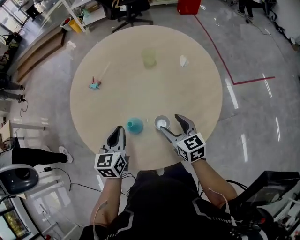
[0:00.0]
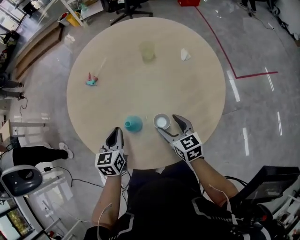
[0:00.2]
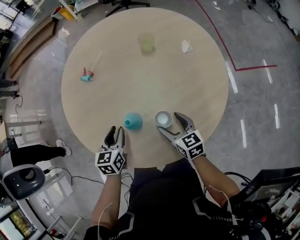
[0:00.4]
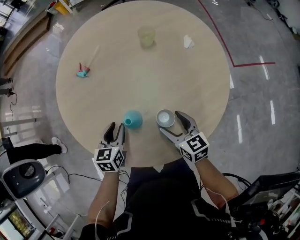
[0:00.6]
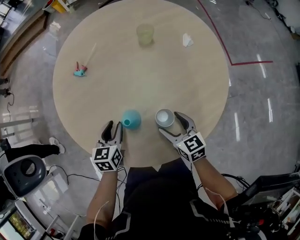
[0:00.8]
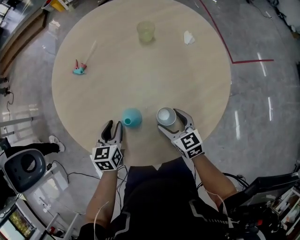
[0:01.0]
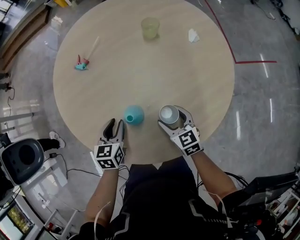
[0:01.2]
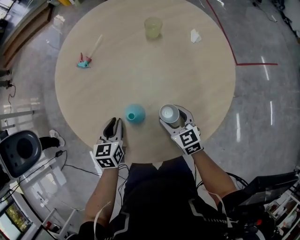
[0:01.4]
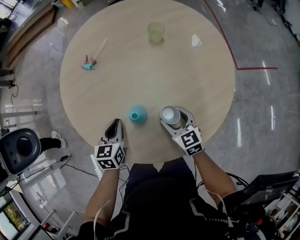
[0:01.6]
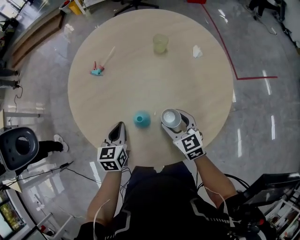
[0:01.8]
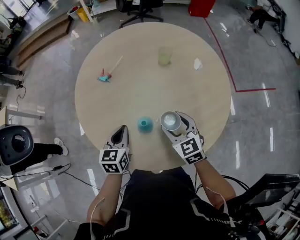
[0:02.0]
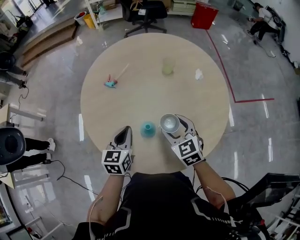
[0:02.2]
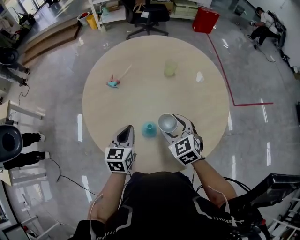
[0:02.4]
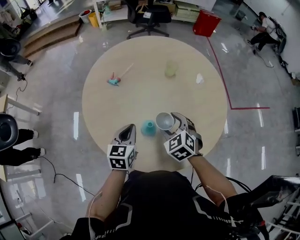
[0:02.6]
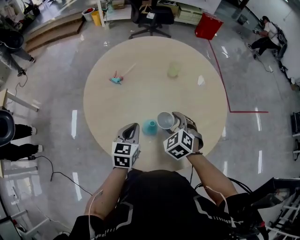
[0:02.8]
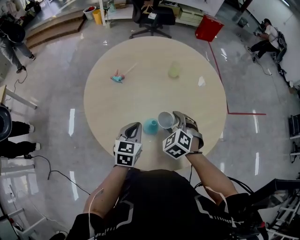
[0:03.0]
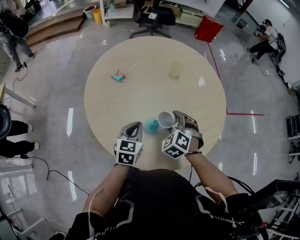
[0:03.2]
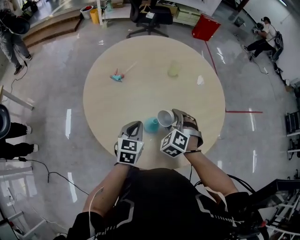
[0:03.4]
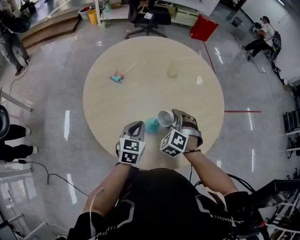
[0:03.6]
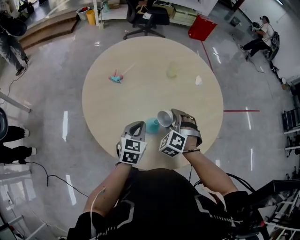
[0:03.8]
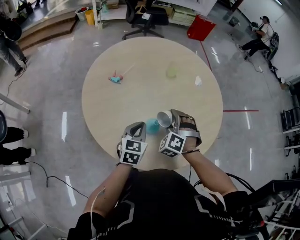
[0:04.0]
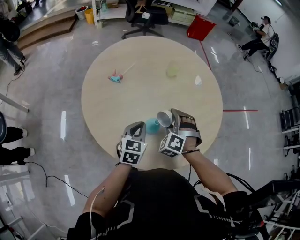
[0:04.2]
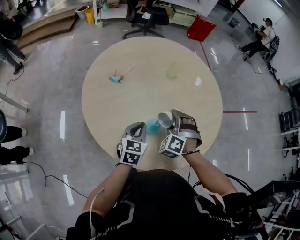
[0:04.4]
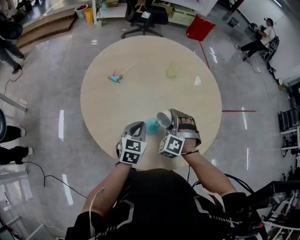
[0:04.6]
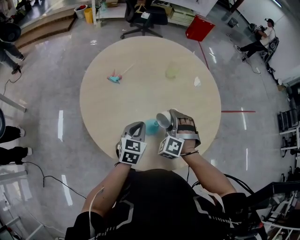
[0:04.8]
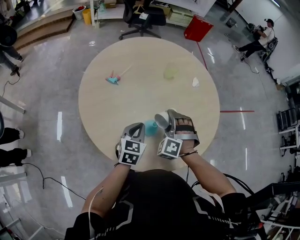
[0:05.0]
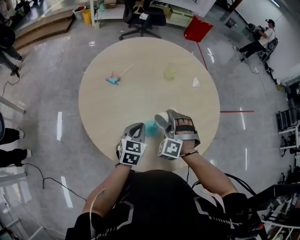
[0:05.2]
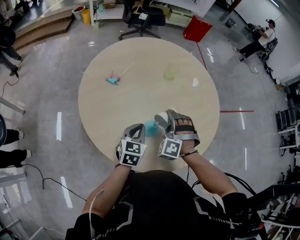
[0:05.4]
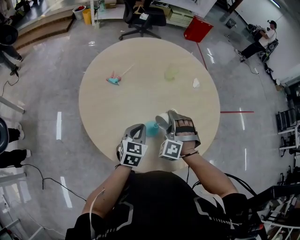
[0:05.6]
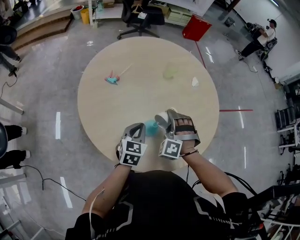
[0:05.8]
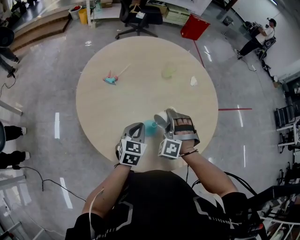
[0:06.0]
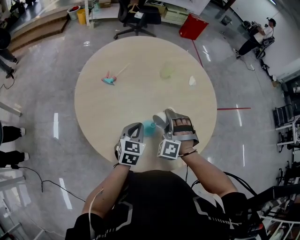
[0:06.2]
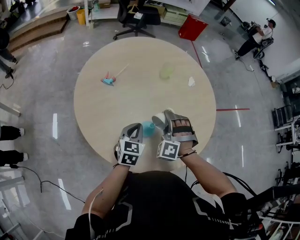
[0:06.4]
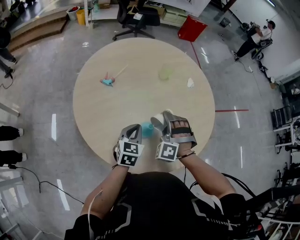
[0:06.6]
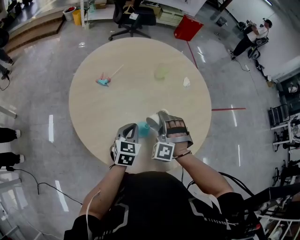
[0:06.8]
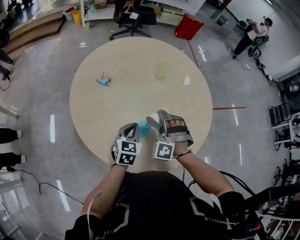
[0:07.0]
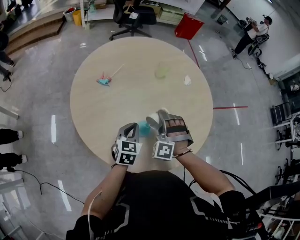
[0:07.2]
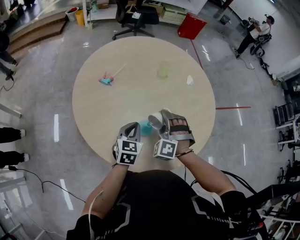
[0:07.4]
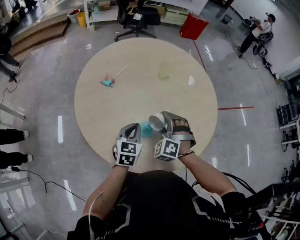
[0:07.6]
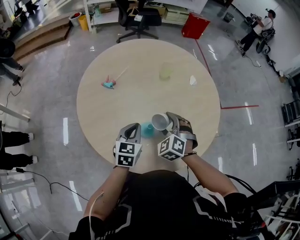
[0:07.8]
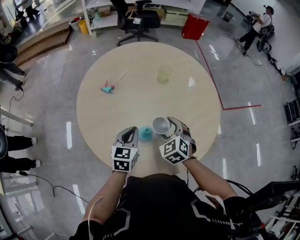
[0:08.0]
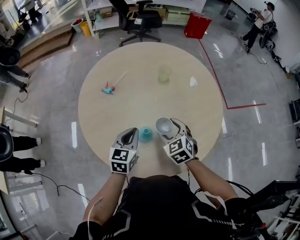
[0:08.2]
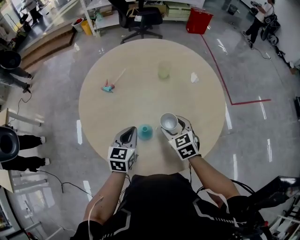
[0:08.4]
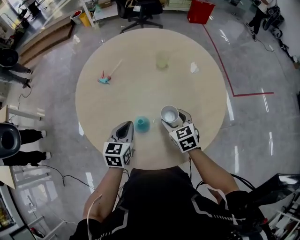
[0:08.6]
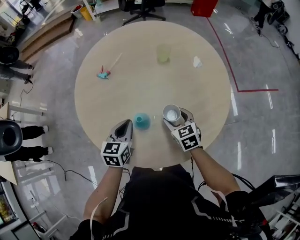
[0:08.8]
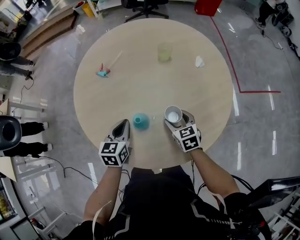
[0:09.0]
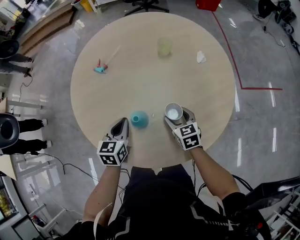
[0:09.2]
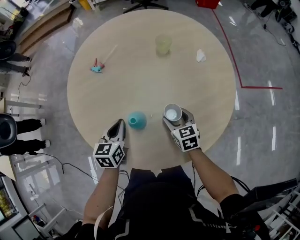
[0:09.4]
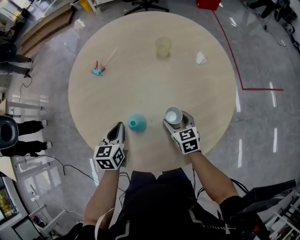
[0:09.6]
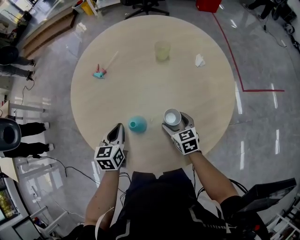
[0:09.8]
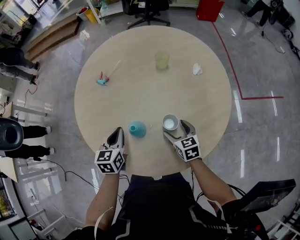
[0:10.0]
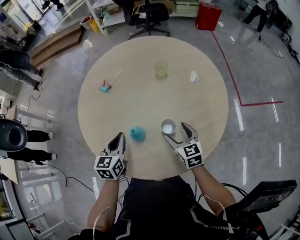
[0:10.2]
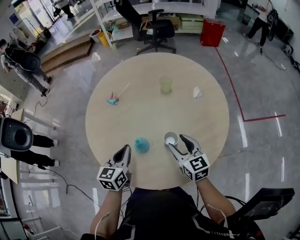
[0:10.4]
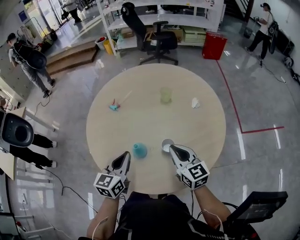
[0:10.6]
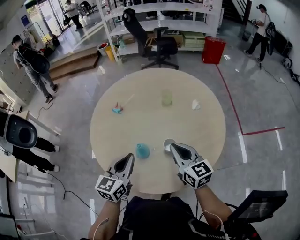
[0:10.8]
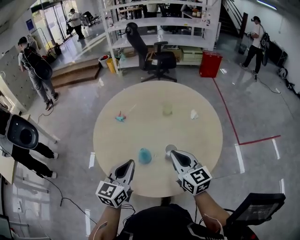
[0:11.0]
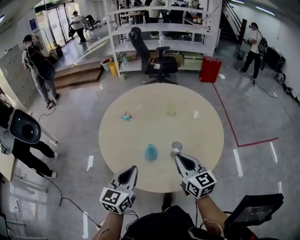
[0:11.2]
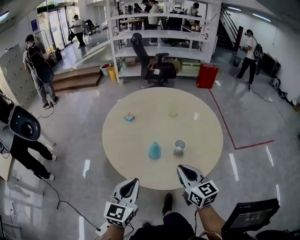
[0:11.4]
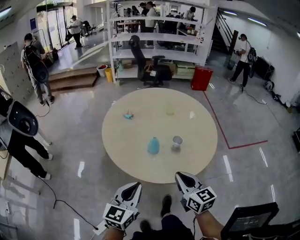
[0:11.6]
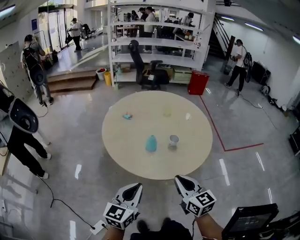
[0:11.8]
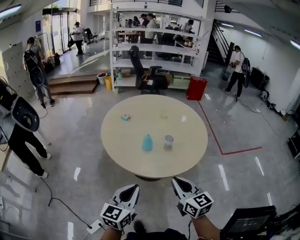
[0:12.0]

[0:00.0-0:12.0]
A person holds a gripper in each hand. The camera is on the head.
0:00.0 to 0:01.6: The grippers both shift downward by about 10 cm. The left gripper opens and closes again.
0:01.6 to 0:03.0: The right gripper goes about 10 cm upward and to the left, and rolls counterclockwise, seen from behind, by about 40 degrees, while the left gripper travels upward by roughly 5 cm.
0:03.0 to 0:04.4: The right gripper turns by approximately 30 degrees.
0:04.4 to 0:07.6: The grippers stay close to where they were, moving slightly.
0:07.6 to 0:09.0: The right gripper heads to the right and downward, covering some 15 cm, and rotates around the line of its fingers by approximately 60 degrees, clockwise from behind.
0:09.0 to 0:10.4: The left gripper moves upward, some 5 cm. Meanwhile the right gripper heads upward, covering approximately 10 cm, and changes its angle by roughly 20 degrees.
0:10.4 to 0:12.0: The right gripper moves backward and upward, approximately 35 cm, and closes; the left gripper shifts roughly 35 cm backward.

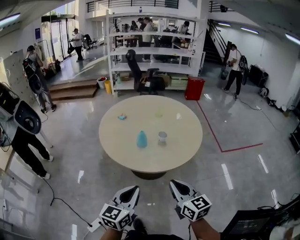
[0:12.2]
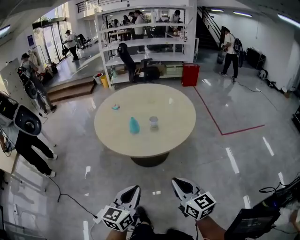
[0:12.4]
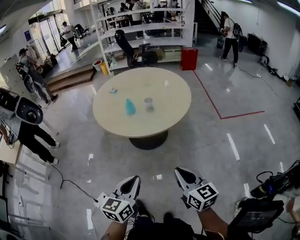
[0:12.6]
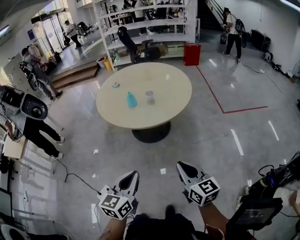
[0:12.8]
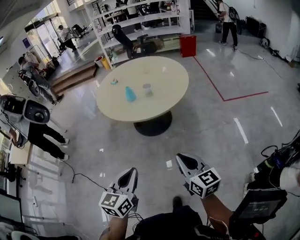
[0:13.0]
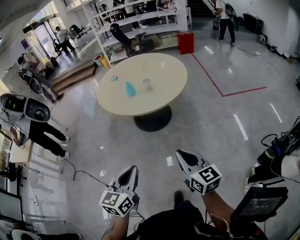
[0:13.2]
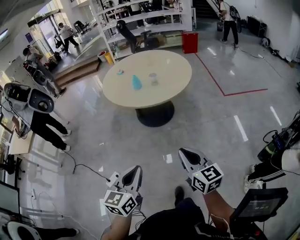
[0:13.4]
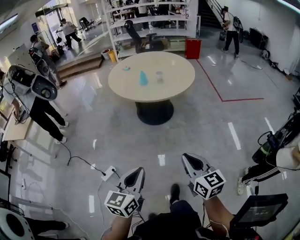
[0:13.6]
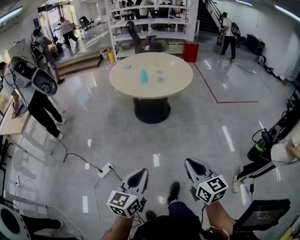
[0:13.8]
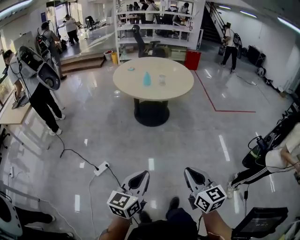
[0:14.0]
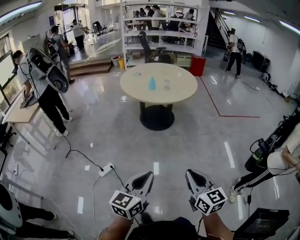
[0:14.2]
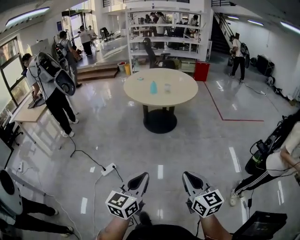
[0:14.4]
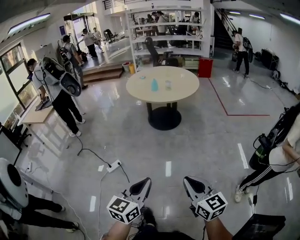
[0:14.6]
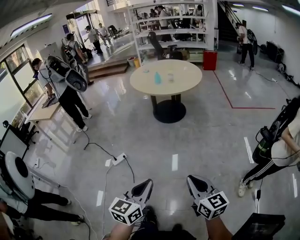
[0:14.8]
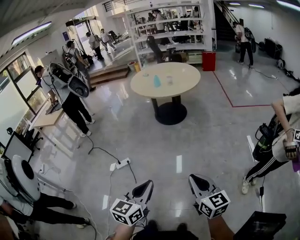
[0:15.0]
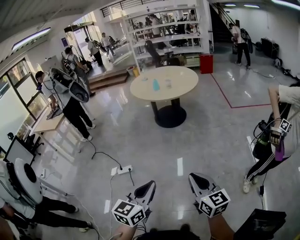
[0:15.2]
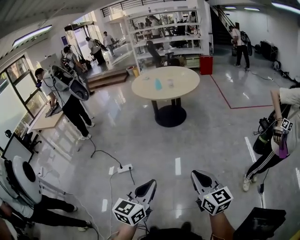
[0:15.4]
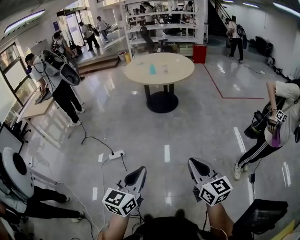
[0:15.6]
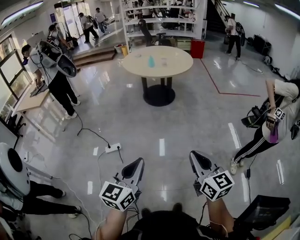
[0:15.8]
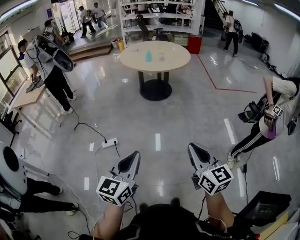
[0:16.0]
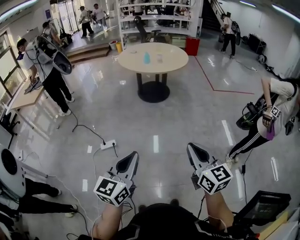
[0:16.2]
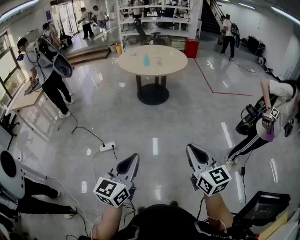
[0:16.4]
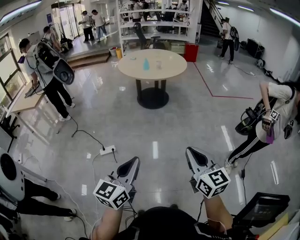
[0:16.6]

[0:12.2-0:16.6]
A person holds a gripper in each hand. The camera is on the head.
0:12.2 to 0:13.6: The two grippers go some 35 cm backward.
0:13.6 to 0:15.2: The two grippers go about 35 cm backward.
0:15.2 to 0:16.6: The left gripper is displaced to the left by roughly 10 cm. The right gripper shifts approximately 10 cm to the left.

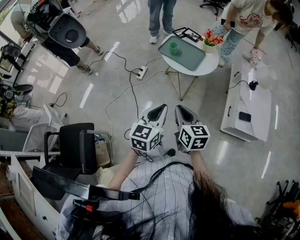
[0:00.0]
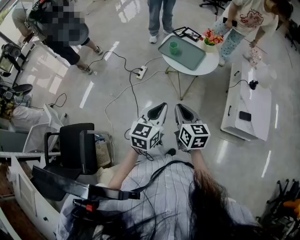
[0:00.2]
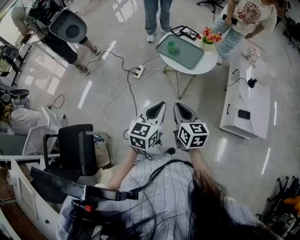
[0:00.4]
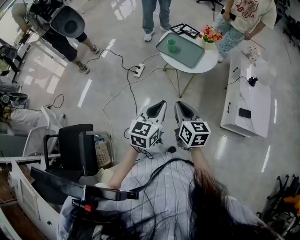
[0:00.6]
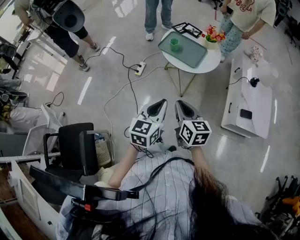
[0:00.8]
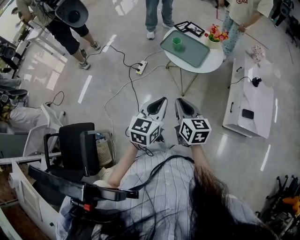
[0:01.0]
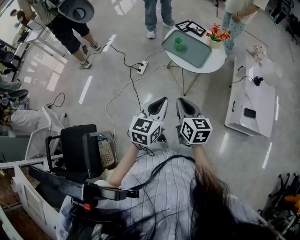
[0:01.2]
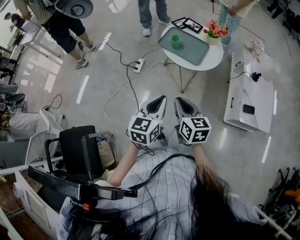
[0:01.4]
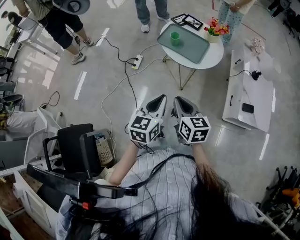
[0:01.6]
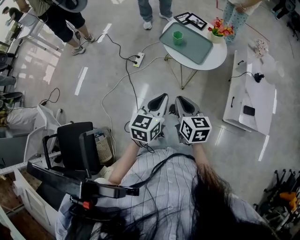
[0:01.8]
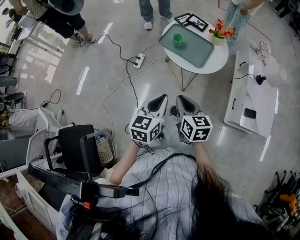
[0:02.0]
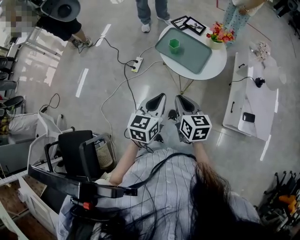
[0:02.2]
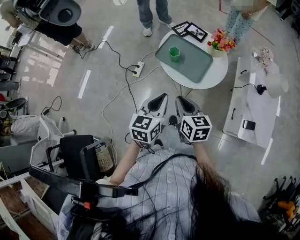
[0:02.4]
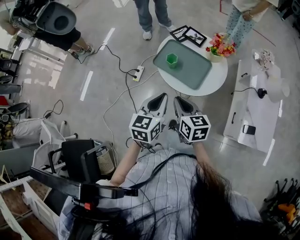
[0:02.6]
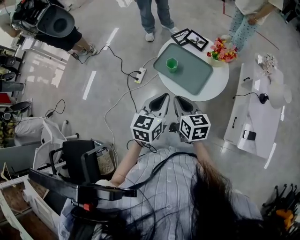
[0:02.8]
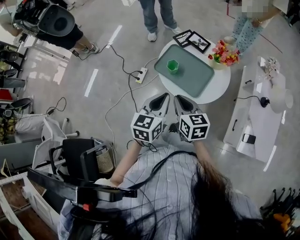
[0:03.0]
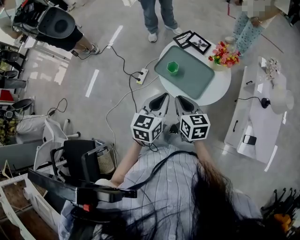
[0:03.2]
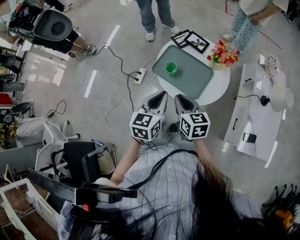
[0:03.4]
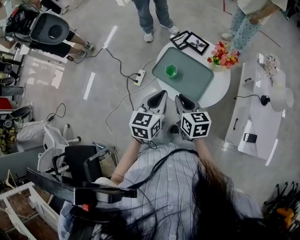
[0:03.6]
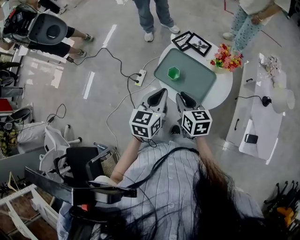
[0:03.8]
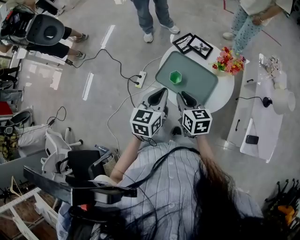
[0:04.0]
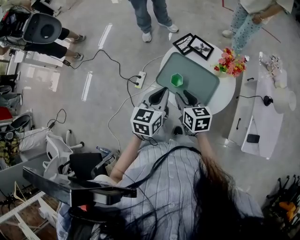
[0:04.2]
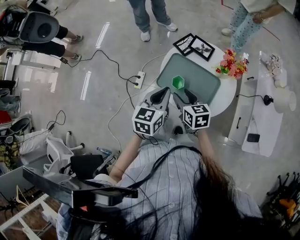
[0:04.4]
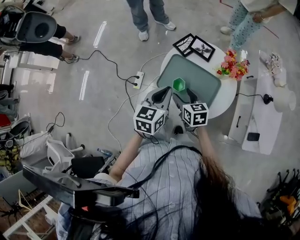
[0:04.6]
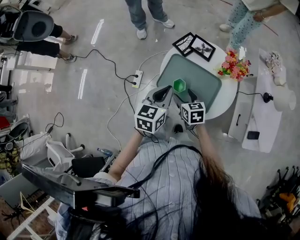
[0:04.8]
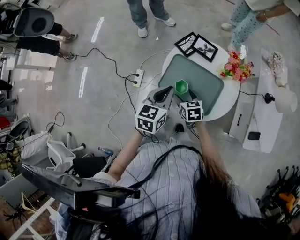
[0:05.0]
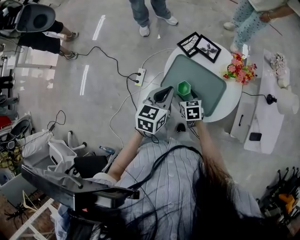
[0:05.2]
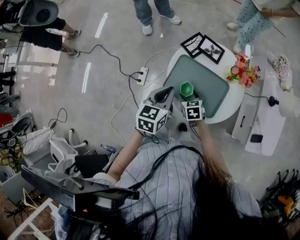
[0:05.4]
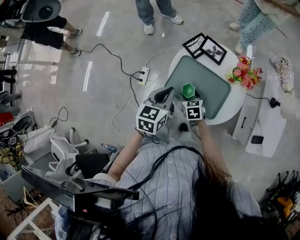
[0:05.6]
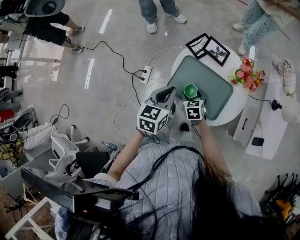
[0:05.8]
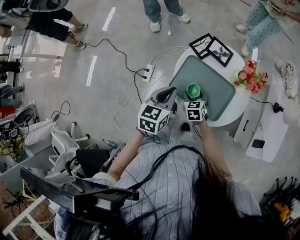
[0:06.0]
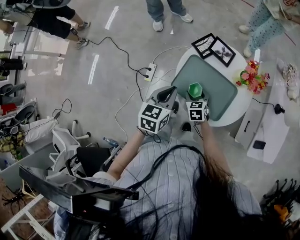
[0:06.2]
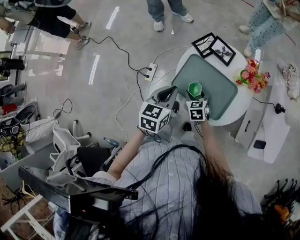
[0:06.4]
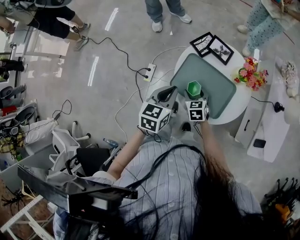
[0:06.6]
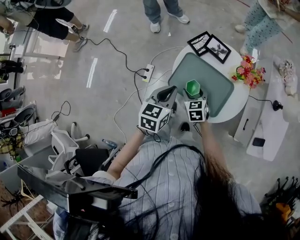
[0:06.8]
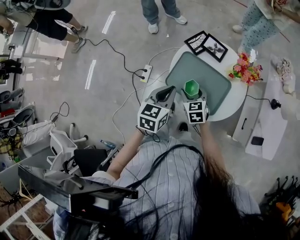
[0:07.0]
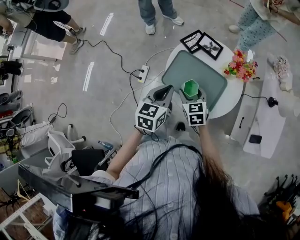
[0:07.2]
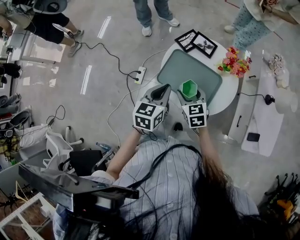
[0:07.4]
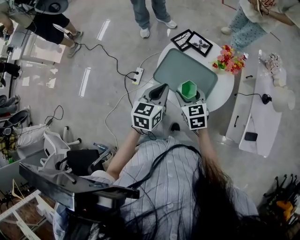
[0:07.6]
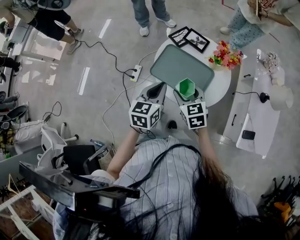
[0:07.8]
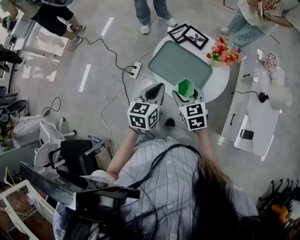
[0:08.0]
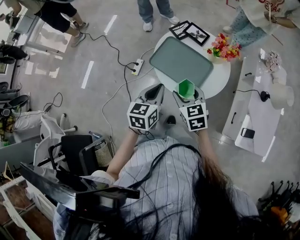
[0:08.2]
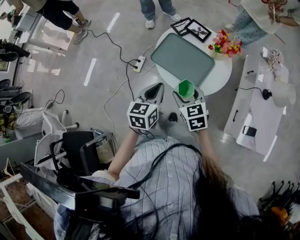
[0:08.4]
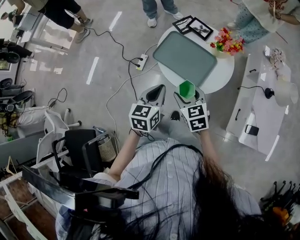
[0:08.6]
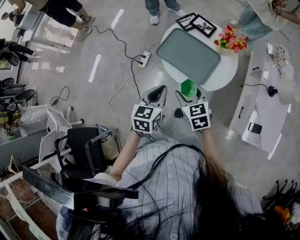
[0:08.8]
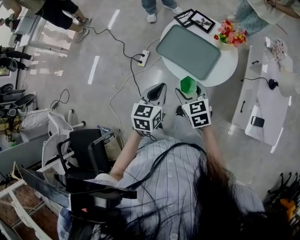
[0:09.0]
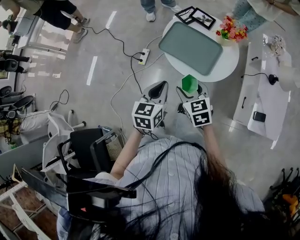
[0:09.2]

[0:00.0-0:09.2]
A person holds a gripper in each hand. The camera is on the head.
0:00.0 to 0:01.6: Both grippers move forward, approximately 10 cm.
0:01.6 to 0:03.0: The two grippers go roughly 25 cm forward.
0:03.0 to 0:04.6: The right gripper goes roughly 20 cm forward and downward, and opens, while the left gripper heads forward, covering some 15 cm.
0:04.6 to 0:06.2: The right gripper moves downward, approximately 10 cm, and rotates roughly 20 degrees. Meanwhile the left gripper moves roughly 5 cm.
0:06.2 to 0:07.6: The left gripper heads to the right and backward, covering roughly 10 cm; the right gripper heads upward and backward, covering approximately 15 cm.
0:07.6 to 0:09.2: The grippers both shift backward by about 15 cm.
